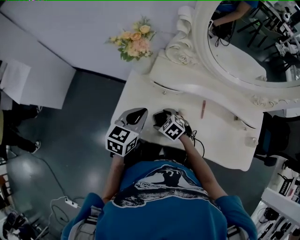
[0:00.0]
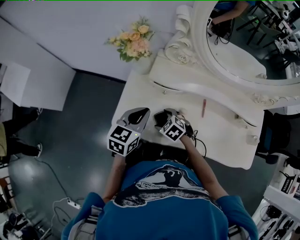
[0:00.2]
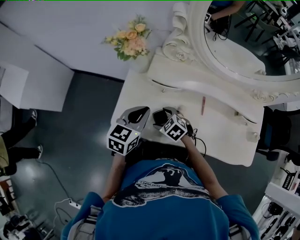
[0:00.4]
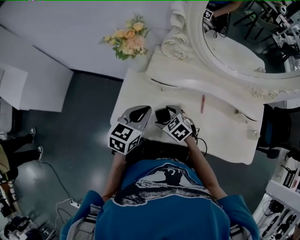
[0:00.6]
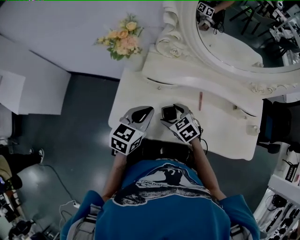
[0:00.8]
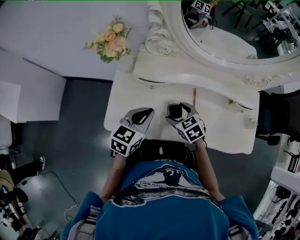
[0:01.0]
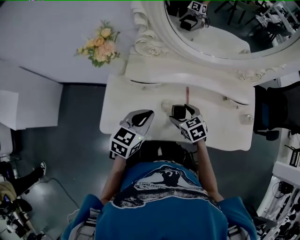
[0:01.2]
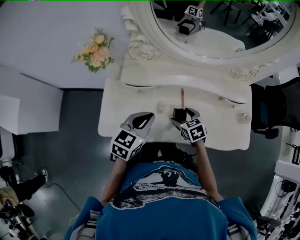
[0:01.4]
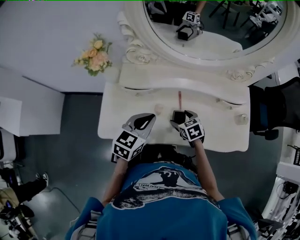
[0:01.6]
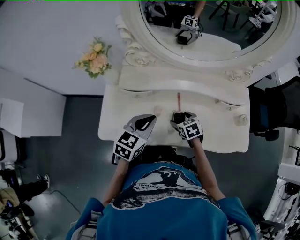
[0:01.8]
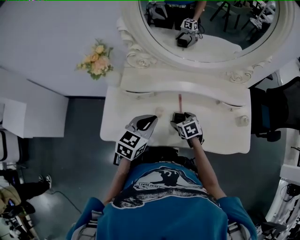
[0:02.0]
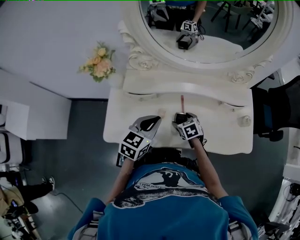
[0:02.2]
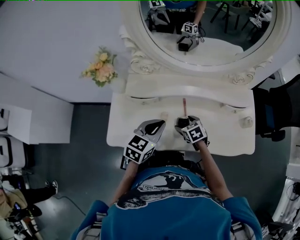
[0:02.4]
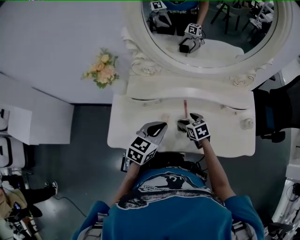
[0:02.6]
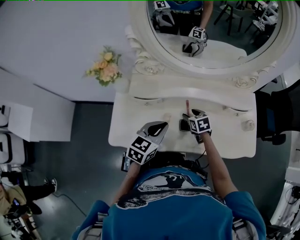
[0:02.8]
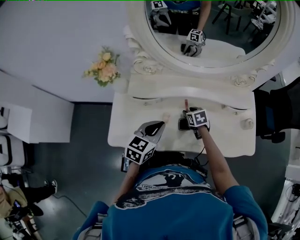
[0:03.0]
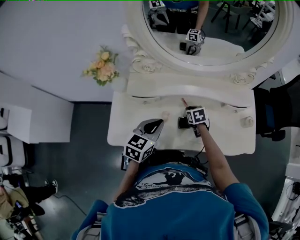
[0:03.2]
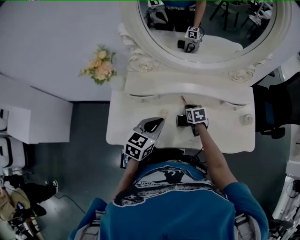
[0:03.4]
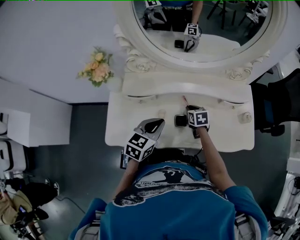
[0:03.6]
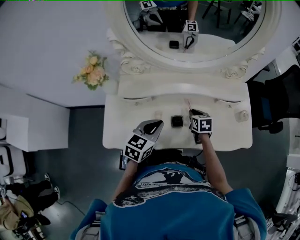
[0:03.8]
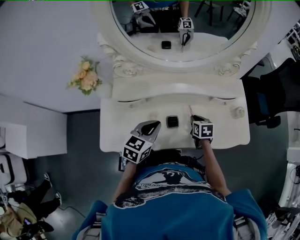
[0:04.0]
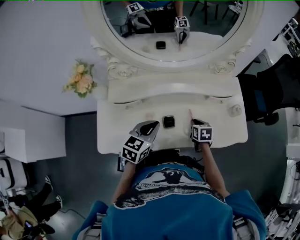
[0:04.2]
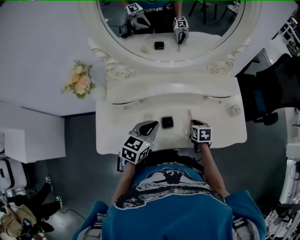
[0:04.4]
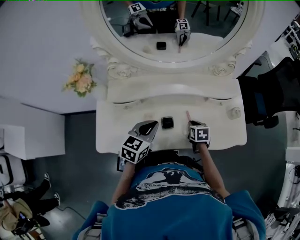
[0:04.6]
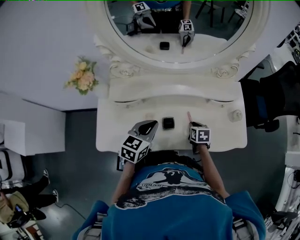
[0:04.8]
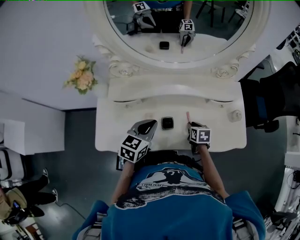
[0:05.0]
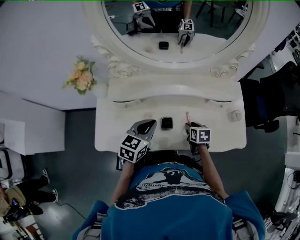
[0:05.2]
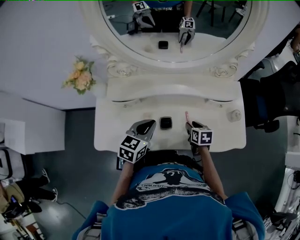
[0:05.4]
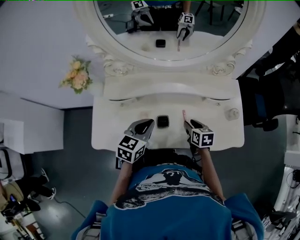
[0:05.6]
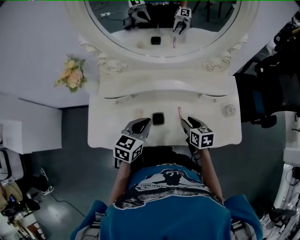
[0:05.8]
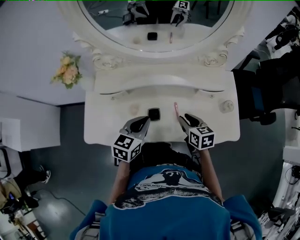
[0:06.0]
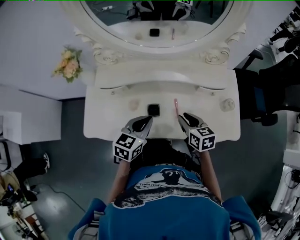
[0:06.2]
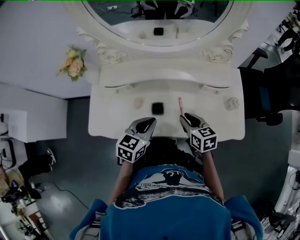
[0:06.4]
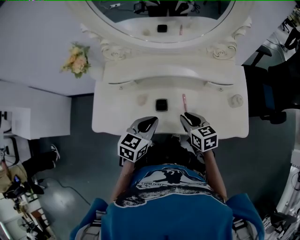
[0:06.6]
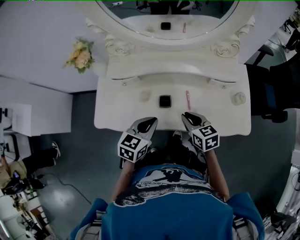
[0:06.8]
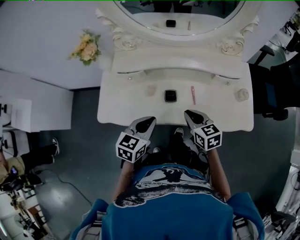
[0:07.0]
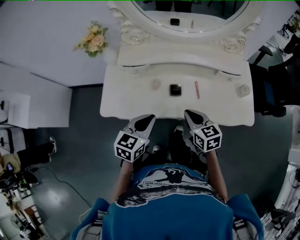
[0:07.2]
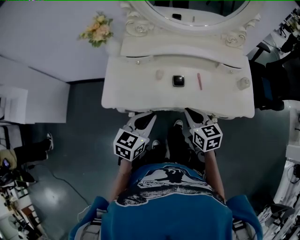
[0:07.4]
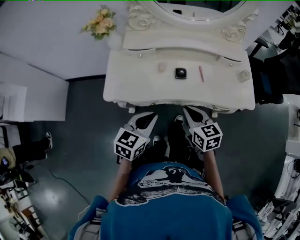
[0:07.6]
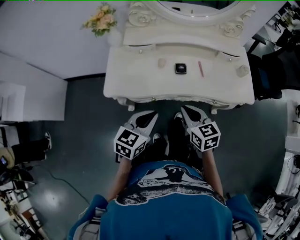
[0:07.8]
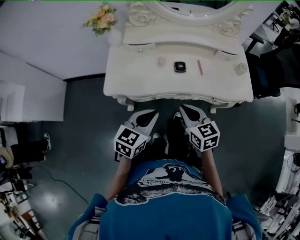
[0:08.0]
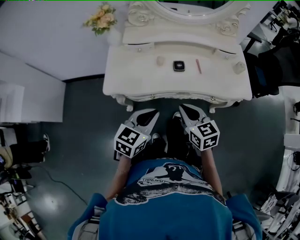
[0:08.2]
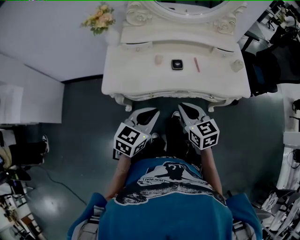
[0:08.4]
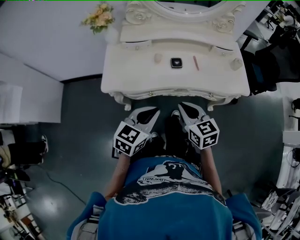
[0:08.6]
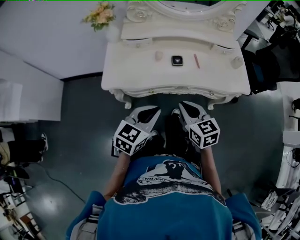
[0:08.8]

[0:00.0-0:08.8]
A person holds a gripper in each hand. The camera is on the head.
0:00.0 to 0:01.4: The left gripper ends up about 15 cm from where it was. The right gripper shifts by approximately 20 cm, and swivels approximately 40 degrees.
0:01.4 to 0:03.0: The right gripper moves forward, some 10 cm, and closes up.
0:03.0 to 0:04.4: The right gripper heads to the right and backward, covering some 15 cm, and rotates approximately 20 degrees, while the left gripper travels to the right by about 5 cm.
0:04.4 to 0:05.8: The right gripper shifts some 5 cm upward.
0:05.8 to 0:07.4: The left gripper heads backward and to the left, covering approximately 20 cm; the right gripper goes approximately 20 cm backward, to the left and upward, and closes up.
0:07.4 to 0:08.8: The two grippers go roughly 10 cm backward.

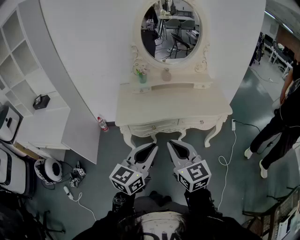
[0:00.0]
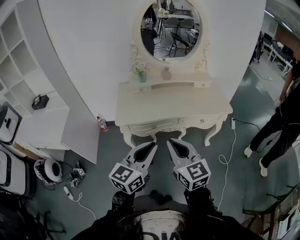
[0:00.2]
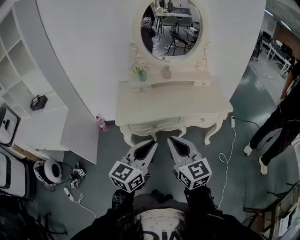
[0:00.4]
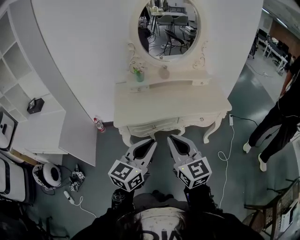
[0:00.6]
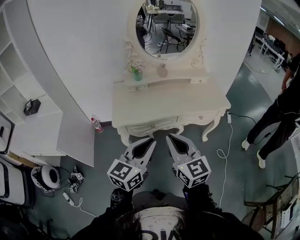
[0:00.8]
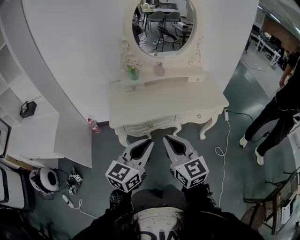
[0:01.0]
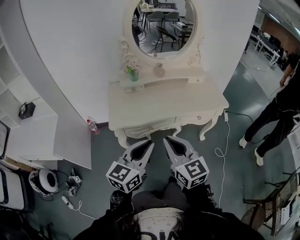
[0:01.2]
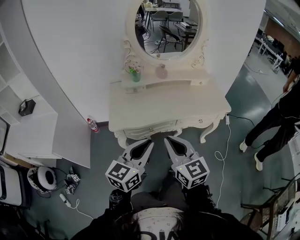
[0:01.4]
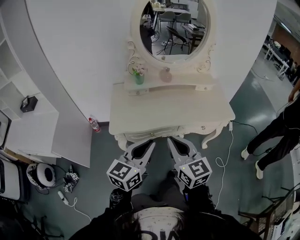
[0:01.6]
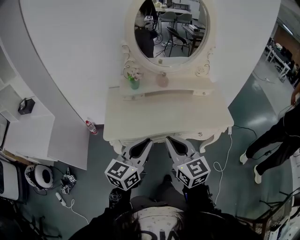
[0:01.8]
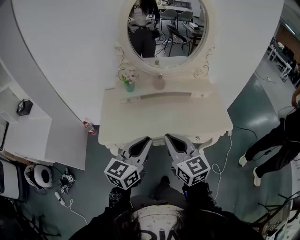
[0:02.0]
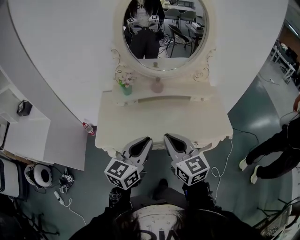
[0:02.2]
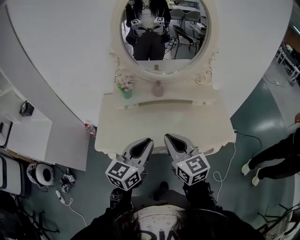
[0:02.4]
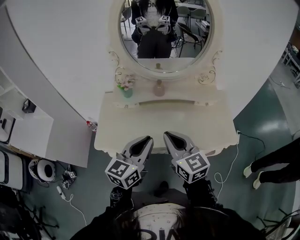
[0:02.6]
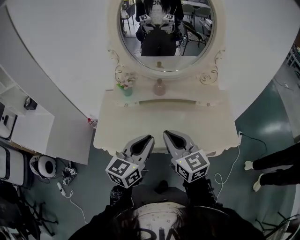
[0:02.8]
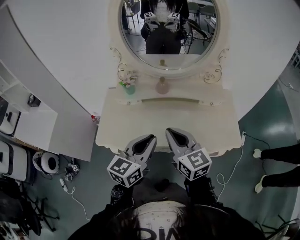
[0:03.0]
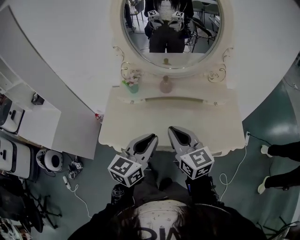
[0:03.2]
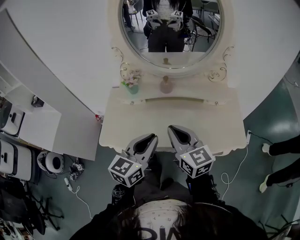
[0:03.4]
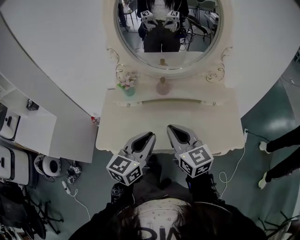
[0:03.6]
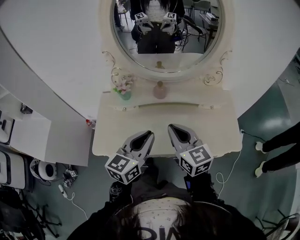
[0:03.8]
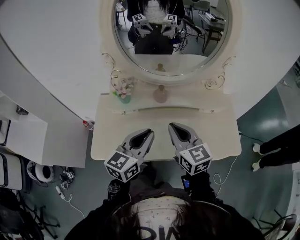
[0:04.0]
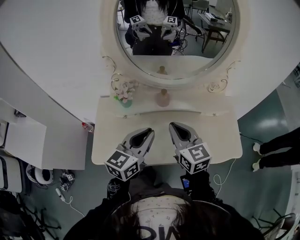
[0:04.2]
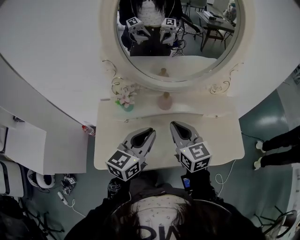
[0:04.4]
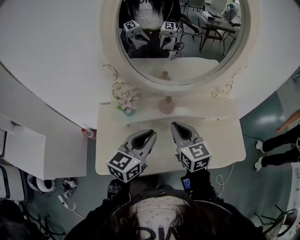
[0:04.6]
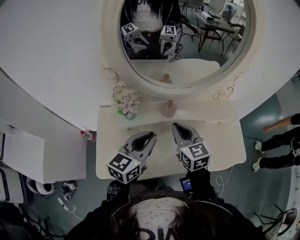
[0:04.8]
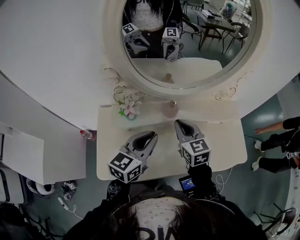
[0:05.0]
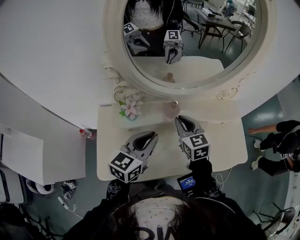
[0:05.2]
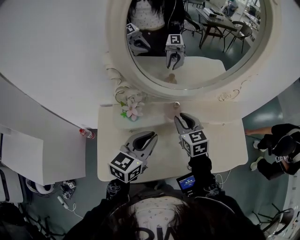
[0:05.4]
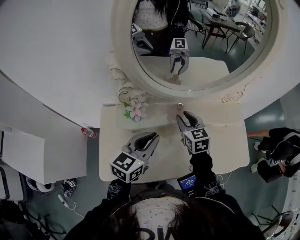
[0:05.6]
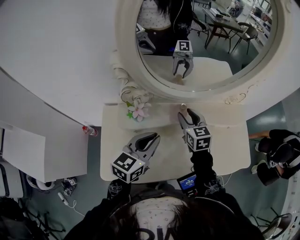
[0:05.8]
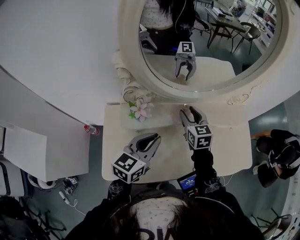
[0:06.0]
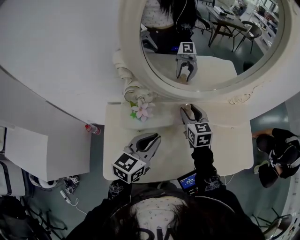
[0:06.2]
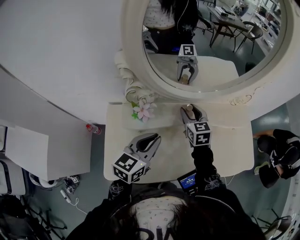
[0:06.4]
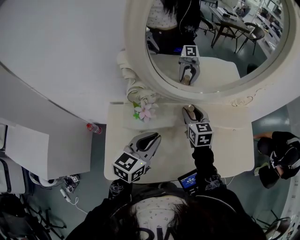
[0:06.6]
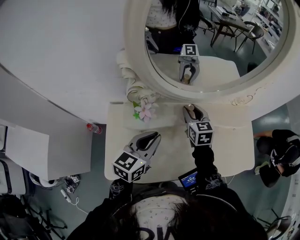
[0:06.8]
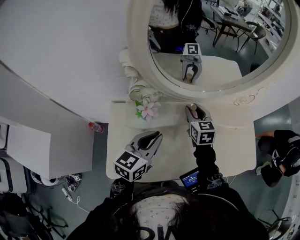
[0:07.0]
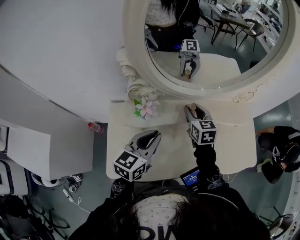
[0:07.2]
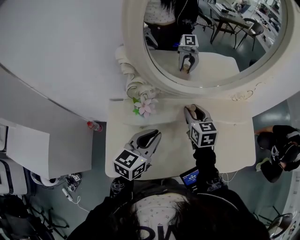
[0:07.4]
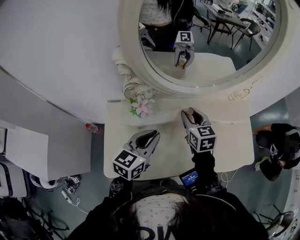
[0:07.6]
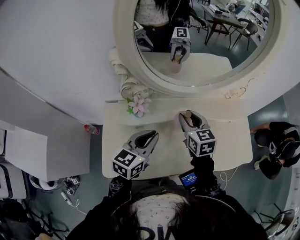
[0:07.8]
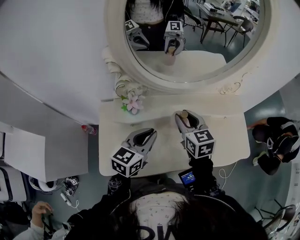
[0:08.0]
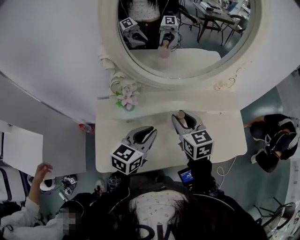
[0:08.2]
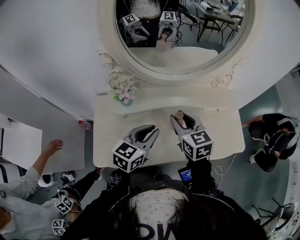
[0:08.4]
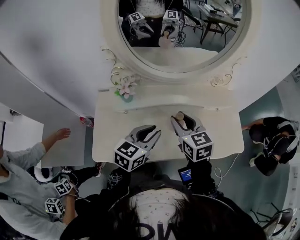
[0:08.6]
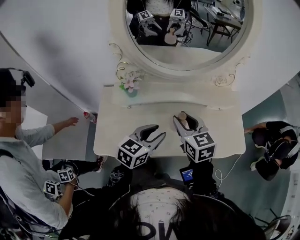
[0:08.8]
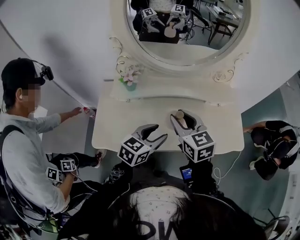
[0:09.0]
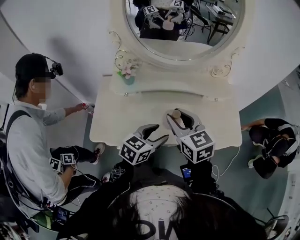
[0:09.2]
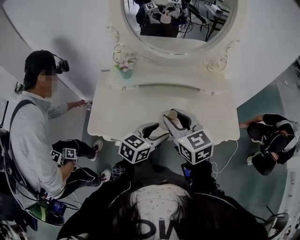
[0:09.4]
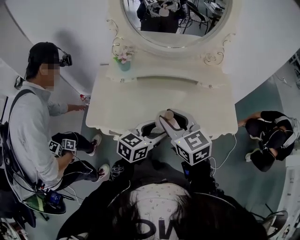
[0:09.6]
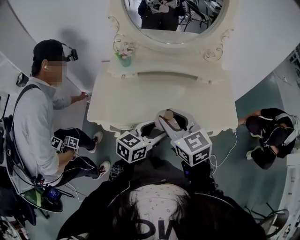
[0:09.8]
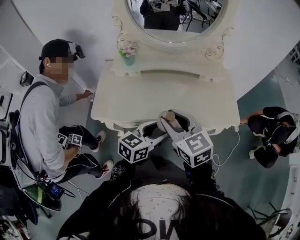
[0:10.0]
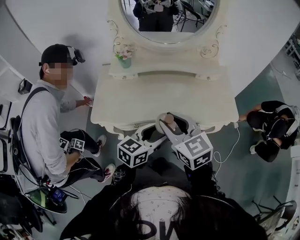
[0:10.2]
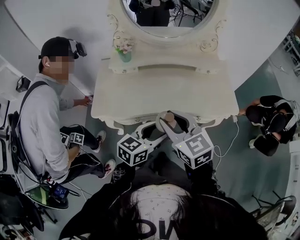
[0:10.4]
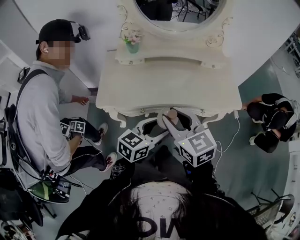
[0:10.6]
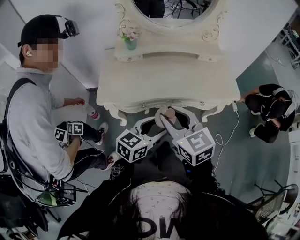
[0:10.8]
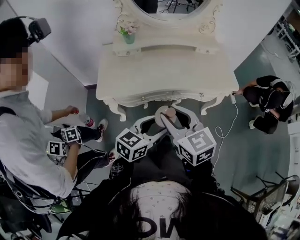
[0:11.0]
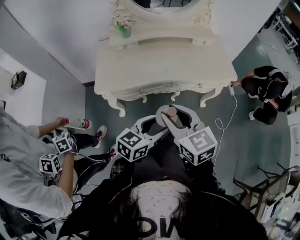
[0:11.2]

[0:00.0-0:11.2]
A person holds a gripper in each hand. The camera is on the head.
0:00.0 to 0:01.6: The two grippers go about 10 cm forward.
0:01.6 to 0:03.2: Both grippers move forward and to the right, roughly 25 cm.
0:03.2 to 0:04.8: Both grippers move forward, some 20 cm.
0:04.8 to 0:06.4: The right gripper shifts approximately 15 cm forward and downward, and opens; the left gripper is displaced to the left by about 5 cm.
0:06.4 to 0:08.0: The right gripper moves backward and upward, about 10 cm.
0:08.0 to 0:09.6: The left gripper heads backward and to the right, covering about 25 cm, and opens its fingers. Meanwhile the right gripper heads backward, covering approximately 25 cm, and turns by about 20 degrees.
0:09.6 to 0:11.2: The grippers both shift backward by approximately 25 cm.

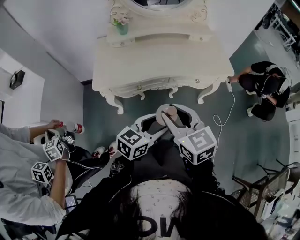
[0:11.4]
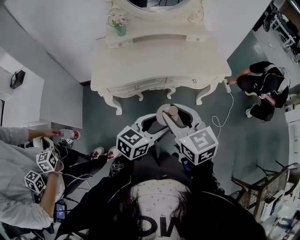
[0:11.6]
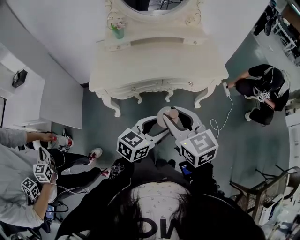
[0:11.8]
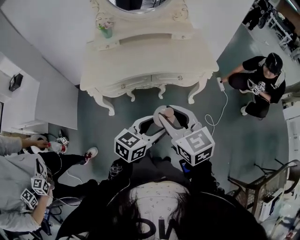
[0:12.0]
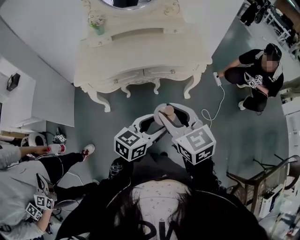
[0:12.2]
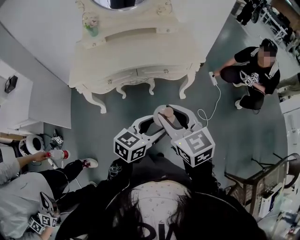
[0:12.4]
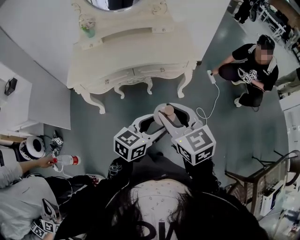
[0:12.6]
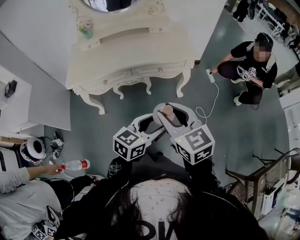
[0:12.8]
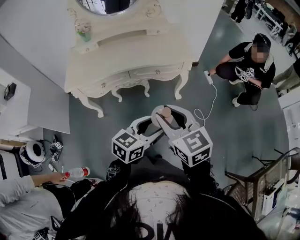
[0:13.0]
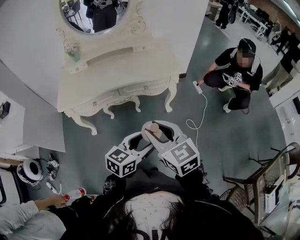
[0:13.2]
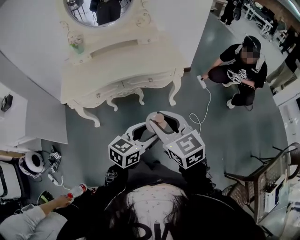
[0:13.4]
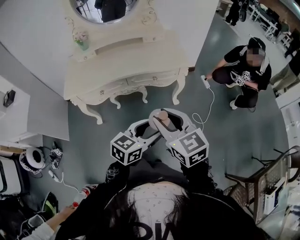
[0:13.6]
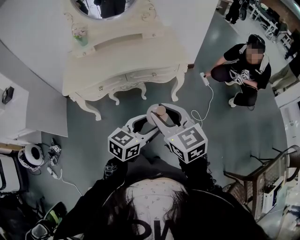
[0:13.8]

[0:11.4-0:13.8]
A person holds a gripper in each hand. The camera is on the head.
0:11.4 to 0:12.6: The two grippers go approximately 20 cm to the right.
0:12.6 to 0:13.8: The grippers stay close to where they were, moving slightly.

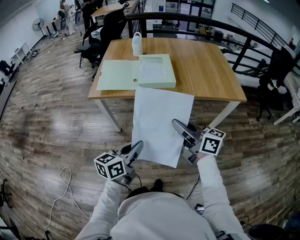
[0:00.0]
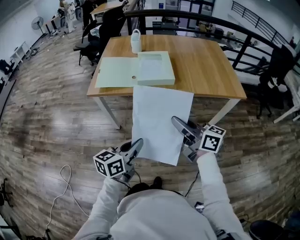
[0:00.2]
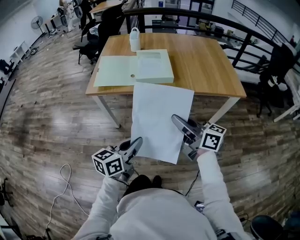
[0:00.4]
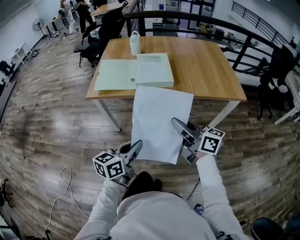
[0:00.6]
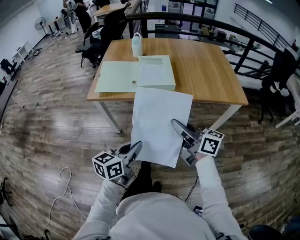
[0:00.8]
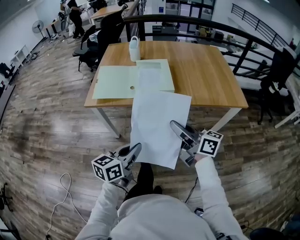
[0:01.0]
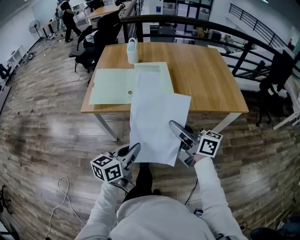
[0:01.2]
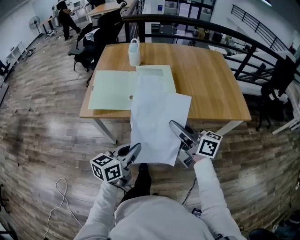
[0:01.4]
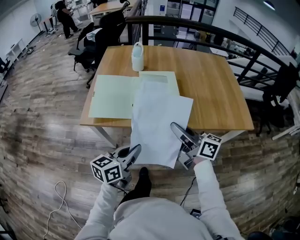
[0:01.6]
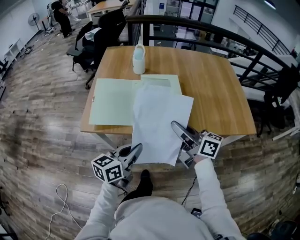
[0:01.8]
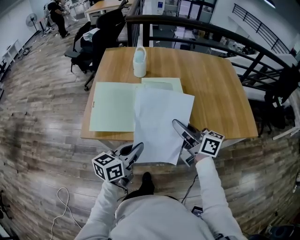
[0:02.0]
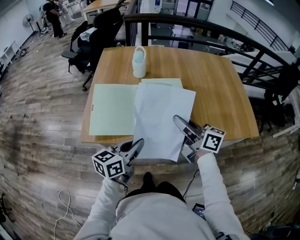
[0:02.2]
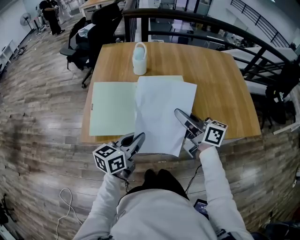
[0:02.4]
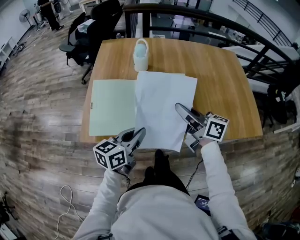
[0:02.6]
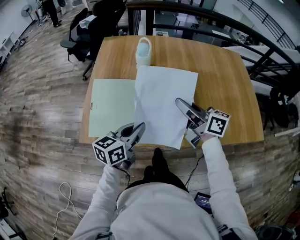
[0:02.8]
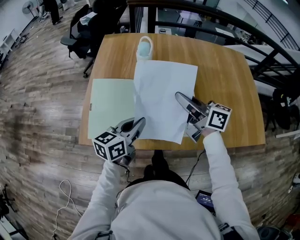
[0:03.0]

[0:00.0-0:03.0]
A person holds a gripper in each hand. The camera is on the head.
0:00.0 to 0:01.6: The grippers both shift forward by approximately 20 cm.
0:01.6 to 0:03.0: The two grippers go about 25 cm forward.
